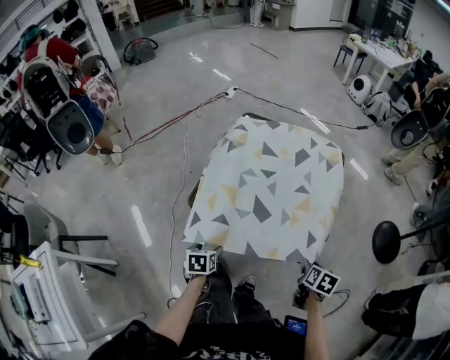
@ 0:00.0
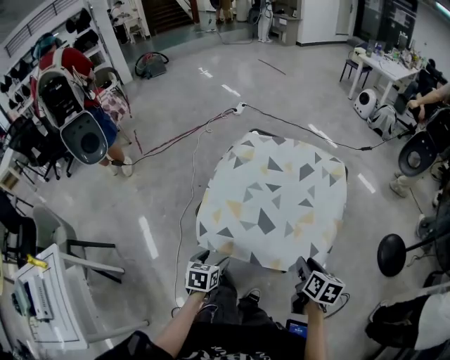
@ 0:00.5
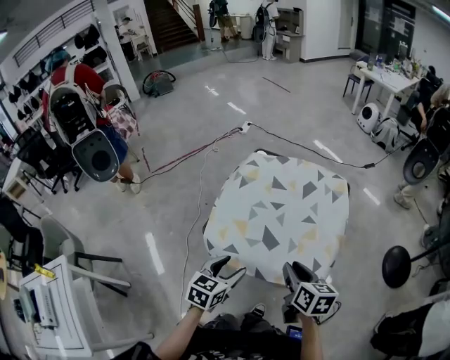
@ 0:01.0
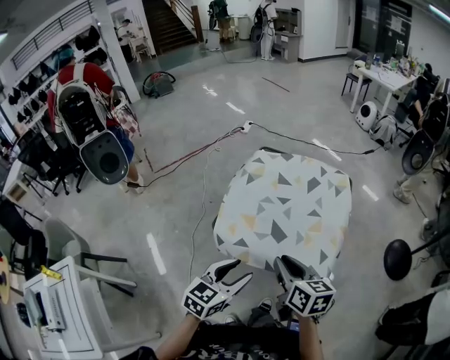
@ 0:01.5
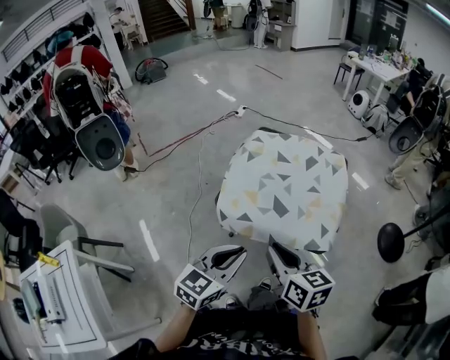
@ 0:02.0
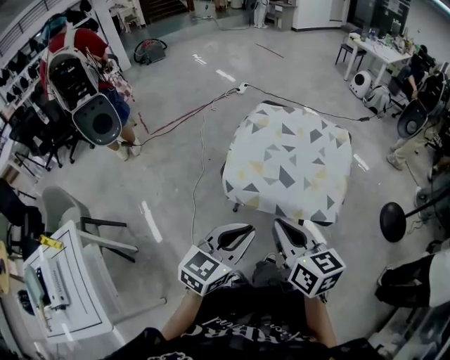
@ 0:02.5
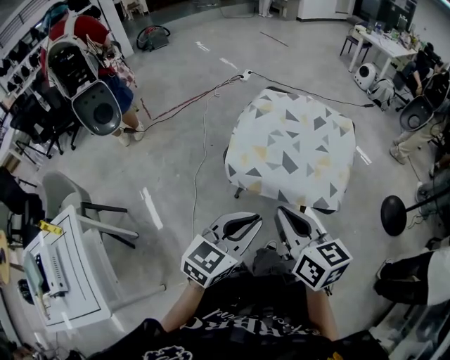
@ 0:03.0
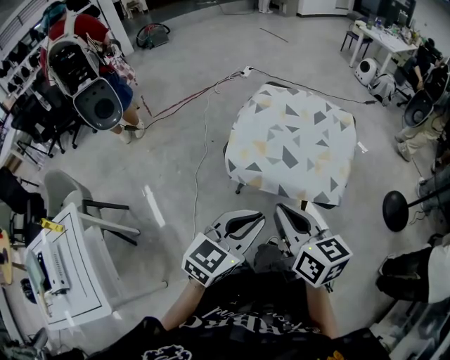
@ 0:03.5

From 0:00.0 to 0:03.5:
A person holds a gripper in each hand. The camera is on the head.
From 0:00.0 to 0:02.0: The right gripper is displaced to the left and upward by some 40 cm, tilts its fingers roughly 40 degrees upward, and closes; the left gripper travels upward by some 30 cm, tips its fingers upward by about 40 degrees, and closes its fingers.
From 0:02.0 to 0:03.5: Both grippers move backward, approximately 10 cm.

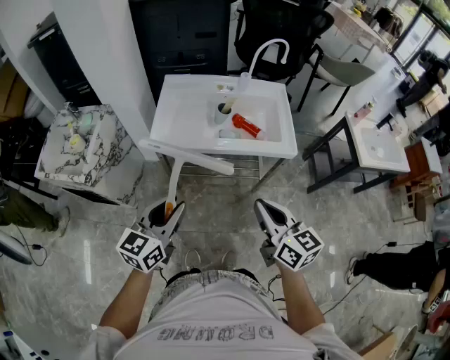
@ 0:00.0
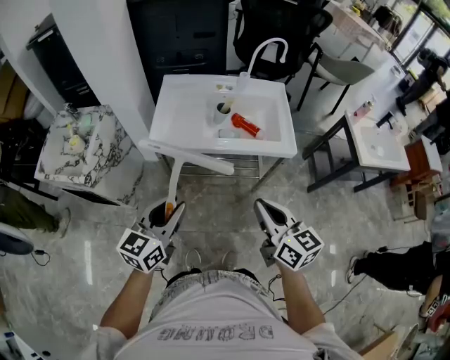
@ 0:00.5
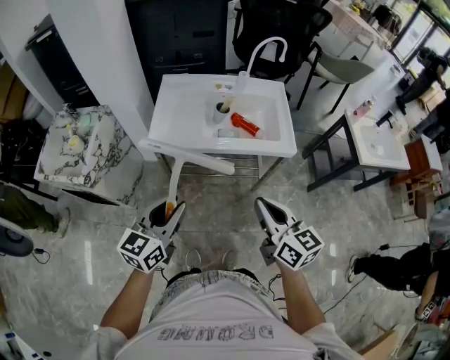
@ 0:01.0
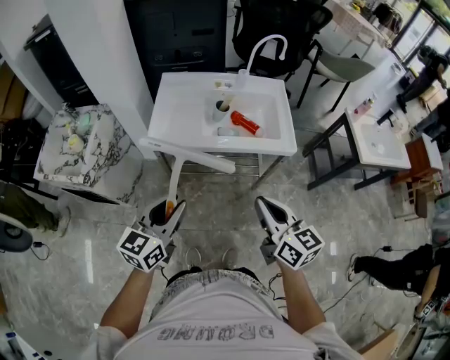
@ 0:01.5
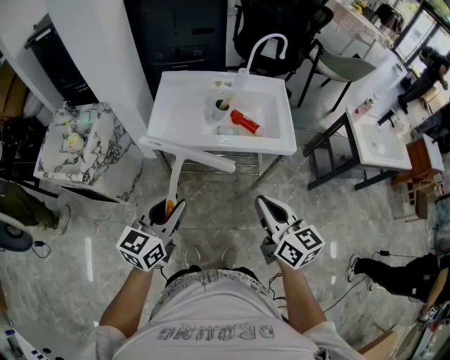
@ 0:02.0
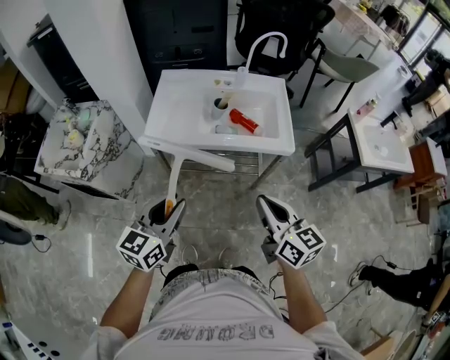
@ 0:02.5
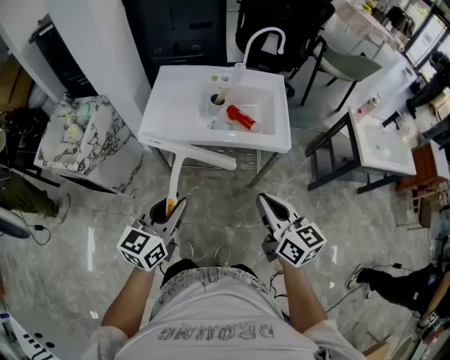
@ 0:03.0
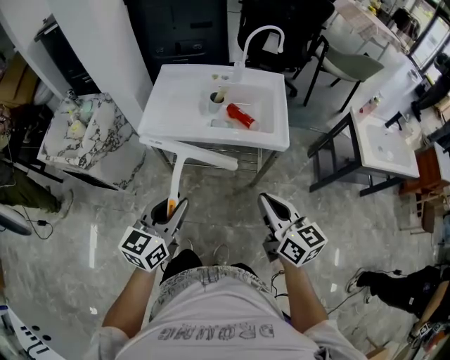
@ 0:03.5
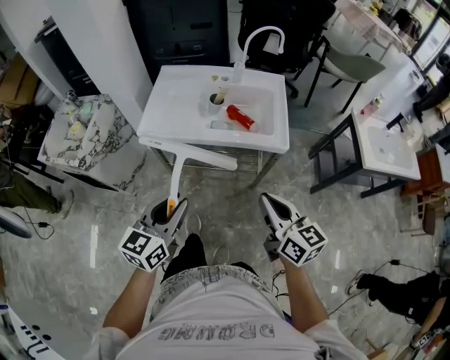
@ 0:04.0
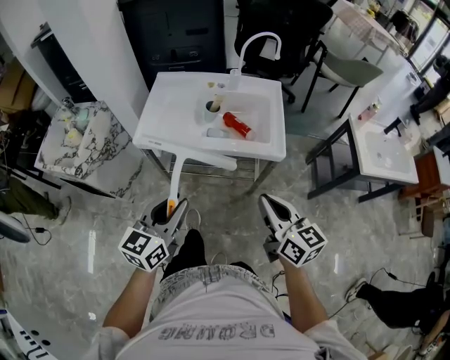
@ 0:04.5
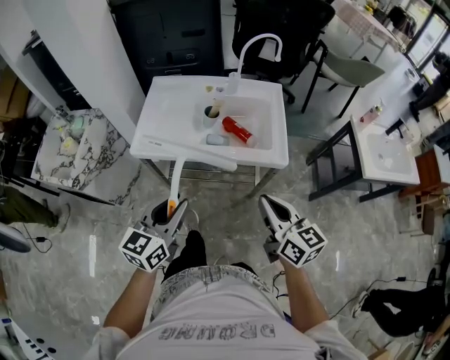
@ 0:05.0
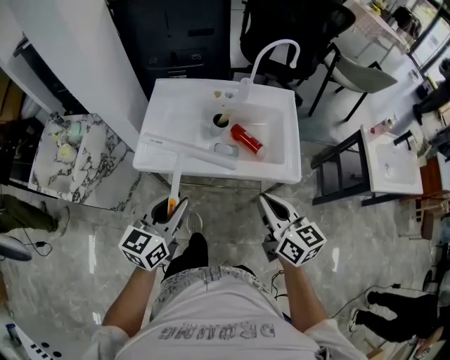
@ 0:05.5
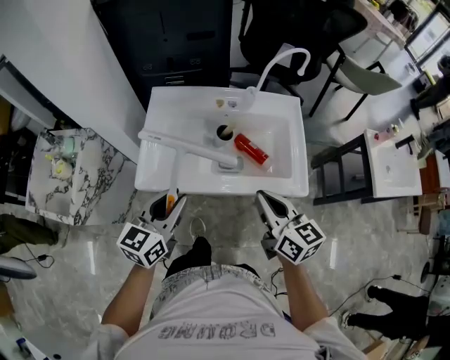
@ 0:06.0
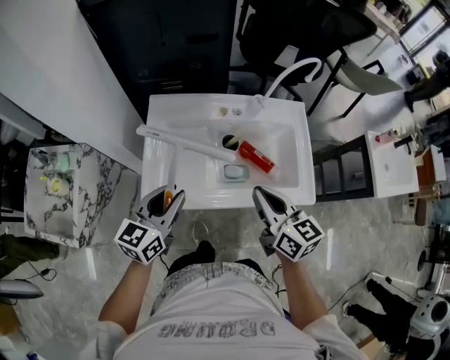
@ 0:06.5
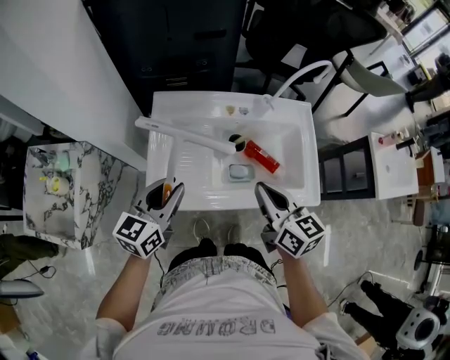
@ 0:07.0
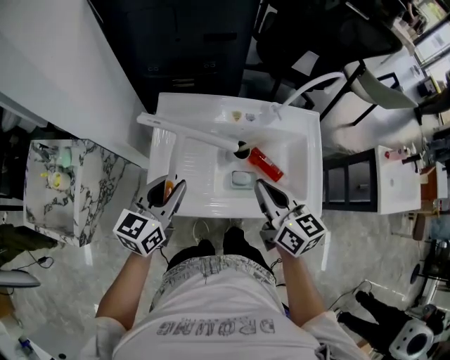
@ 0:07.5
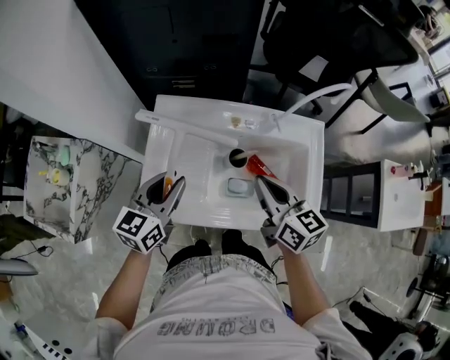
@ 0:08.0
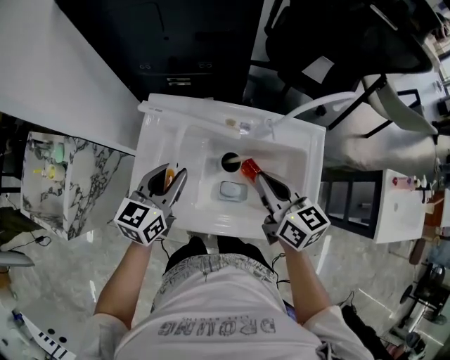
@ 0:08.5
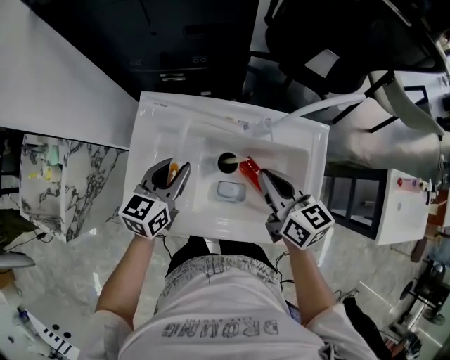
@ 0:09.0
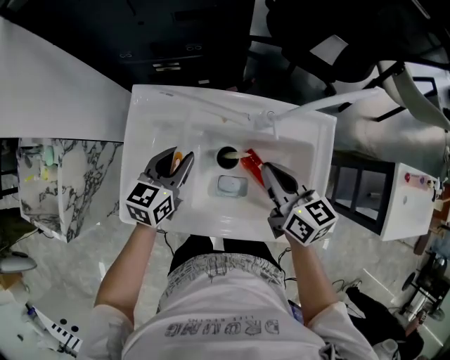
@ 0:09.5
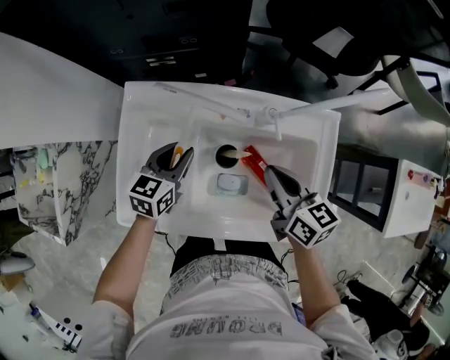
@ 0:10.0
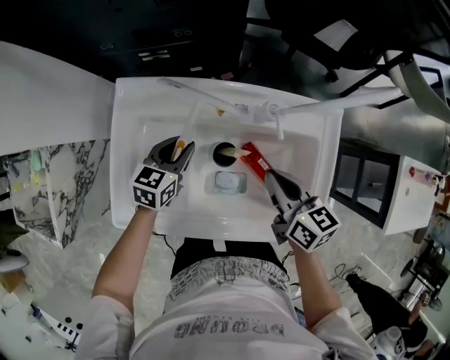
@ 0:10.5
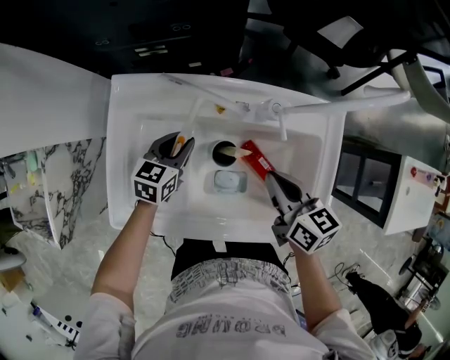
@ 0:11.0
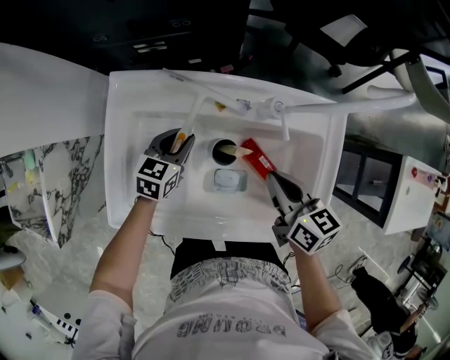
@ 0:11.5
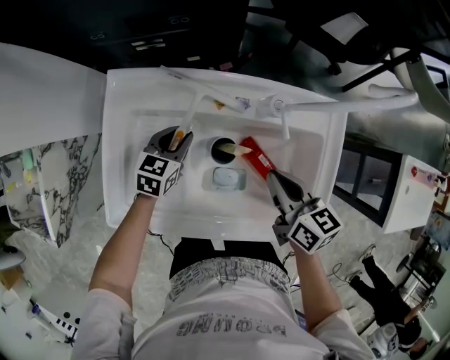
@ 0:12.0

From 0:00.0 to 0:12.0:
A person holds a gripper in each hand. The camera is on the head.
From 0:00.0 to 0:02.0: Both grippers stay about where they are.
From 0:02.0 to 0:04.0: Both grippers move to the right, approximately 10 cm.
From 0:04.0 to 0:06.0: The two grippers go some 25 cm forward.
From 0:06.0 to 0:08.0: Both grippers move forward, some 20 cm.
From 0:08.0 to 0:10.0: The left gripper is displaced downward, forward and to the right by some 20 cm. The right gripper shifts approximately 15 cm downward, to the right and forward.
From 0:10.0 to 0:12.0: The left gripper goes approximately 10 cm downward.

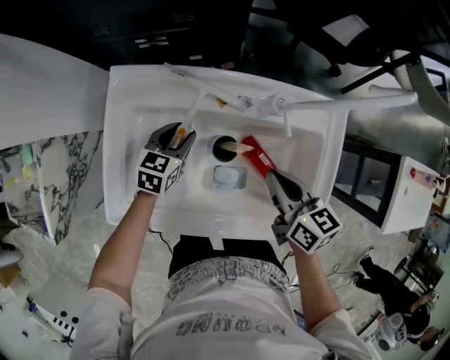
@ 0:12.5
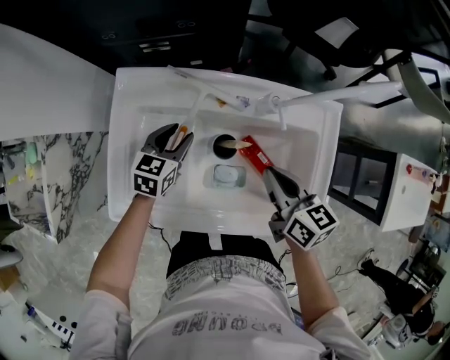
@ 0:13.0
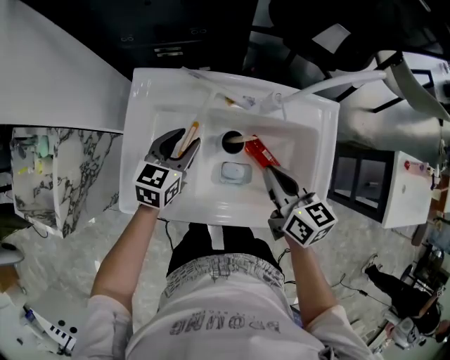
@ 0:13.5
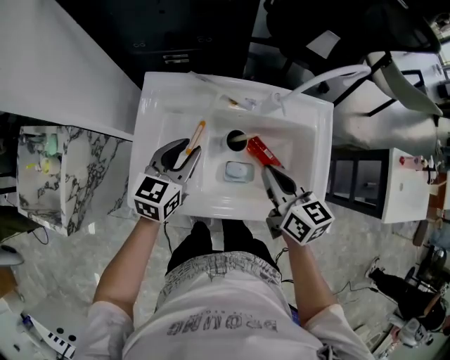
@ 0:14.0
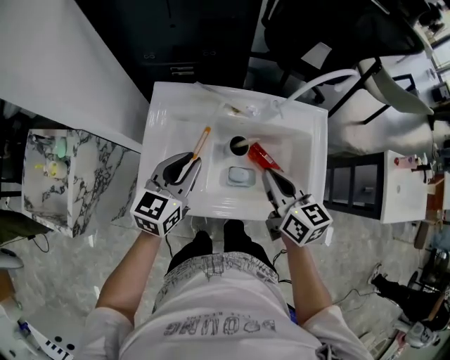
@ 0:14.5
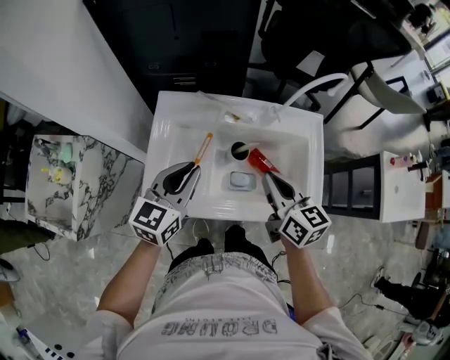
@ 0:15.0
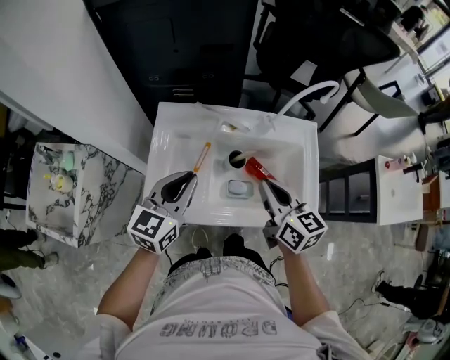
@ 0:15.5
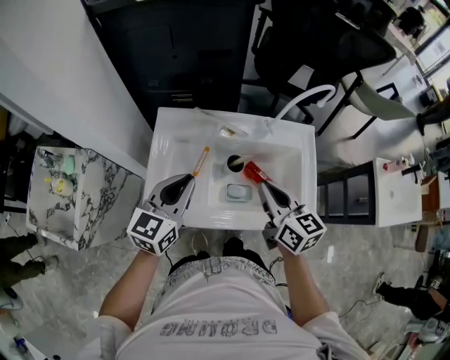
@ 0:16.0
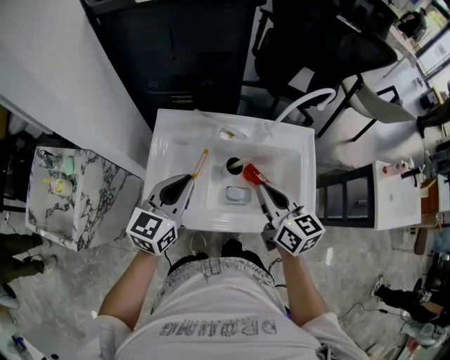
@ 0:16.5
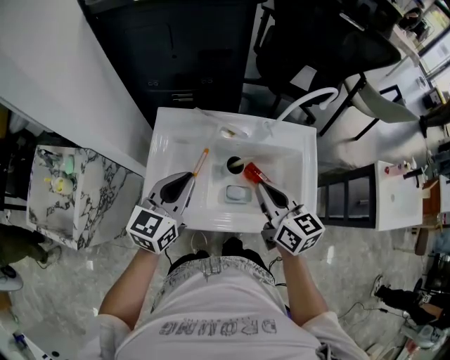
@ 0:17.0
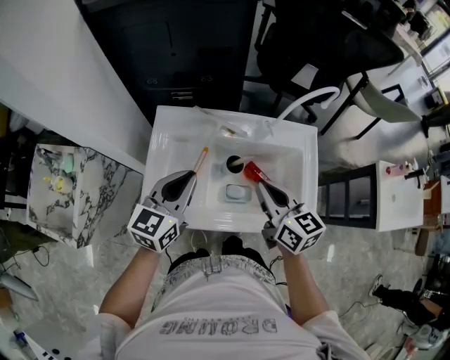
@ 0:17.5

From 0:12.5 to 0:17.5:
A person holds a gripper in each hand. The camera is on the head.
From 0:12.5 to 0:15.0: The right gripper moves upward, backward and to the left, some 15 cm; the left gripper travels upward and backward by approximately 30 cm, swivels about 30 degrees, and closes its fingers.
From 0:15.0 to 0:17.5: There are only small adjustments of the grippers.

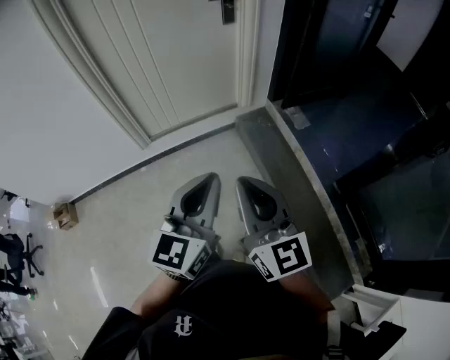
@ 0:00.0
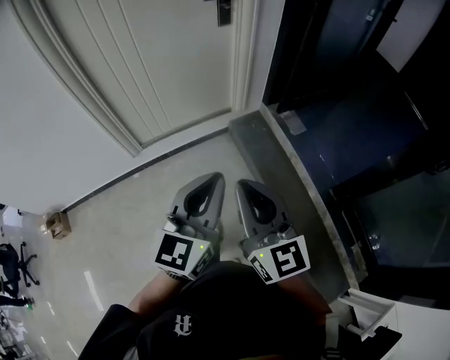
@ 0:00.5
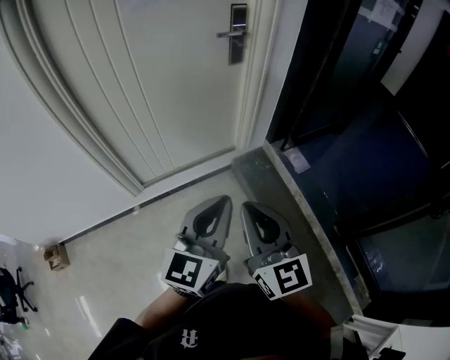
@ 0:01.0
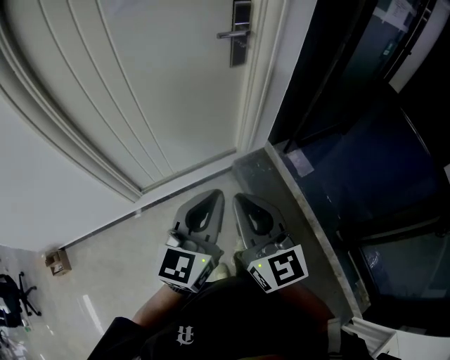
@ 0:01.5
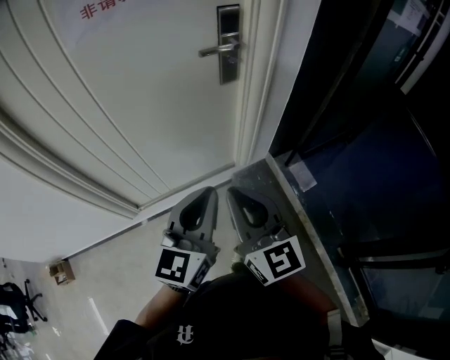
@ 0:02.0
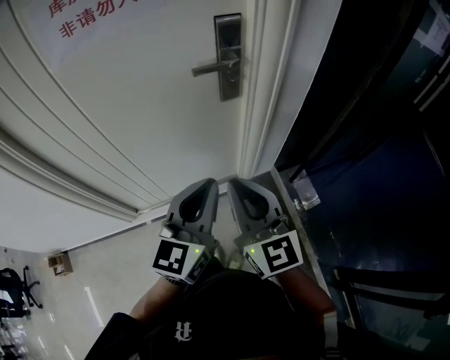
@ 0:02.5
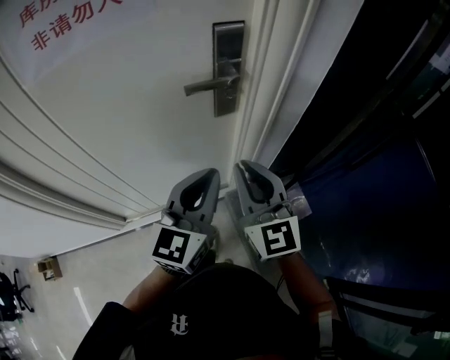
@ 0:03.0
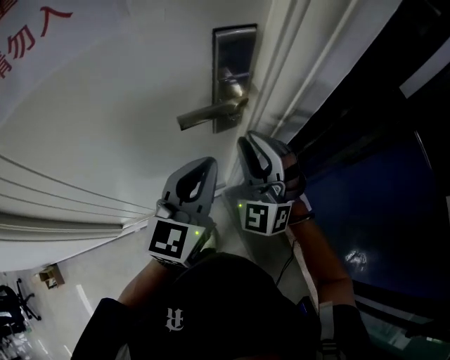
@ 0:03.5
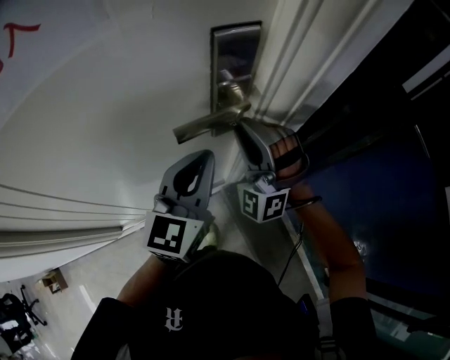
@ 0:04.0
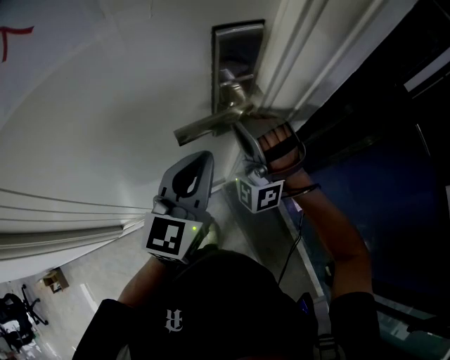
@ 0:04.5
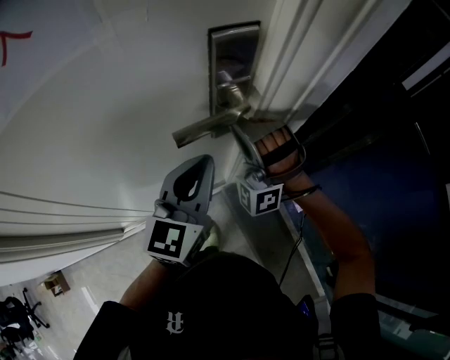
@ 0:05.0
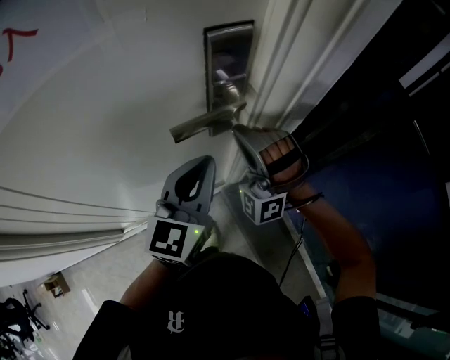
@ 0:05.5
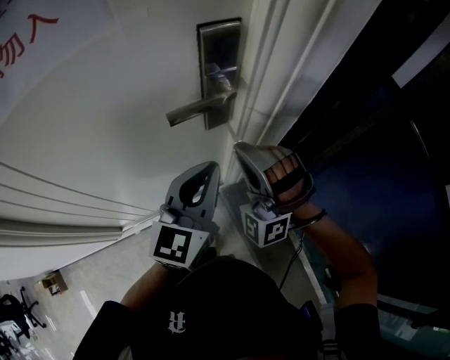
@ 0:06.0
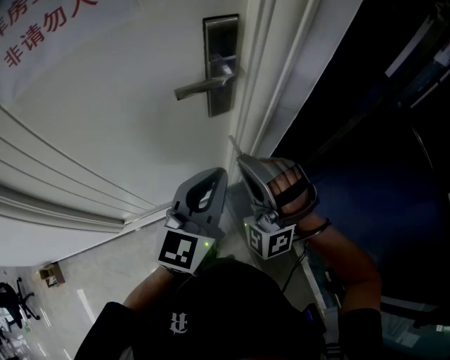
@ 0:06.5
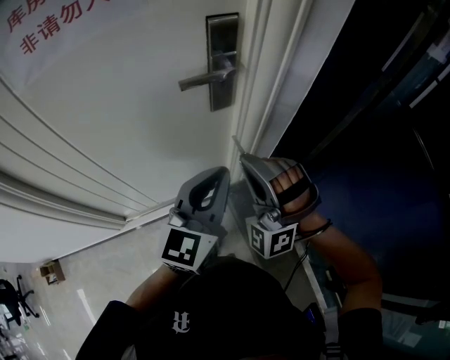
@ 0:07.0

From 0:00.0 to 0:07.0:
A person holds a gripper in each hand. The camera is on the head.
From 0:00.0 to 0:02.0: Both grippers are carried forward, roughly 40 cm.
From 0:02.0 to 0:03.5: Both grippers move forward, approximately 35 cm. The right gripper twists roughly 60 degrees counterclockwise, seen from behind.
From 0:03.5 to 0:05.0: The right gripper is displaced forward by some 5 cm, and changes its angle by about 30 degrees.
From 0:05.0 to 0:07.0: Both grippers travel together backward, about 20 cm.
